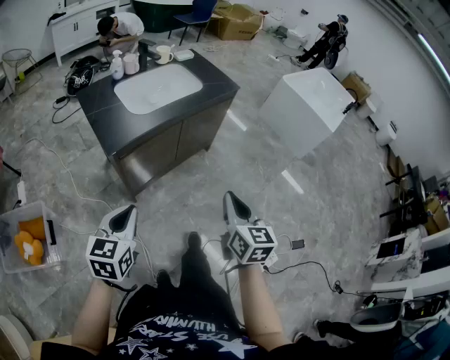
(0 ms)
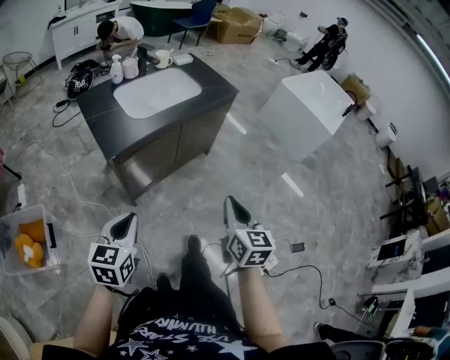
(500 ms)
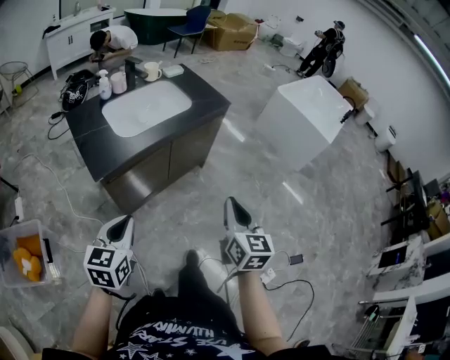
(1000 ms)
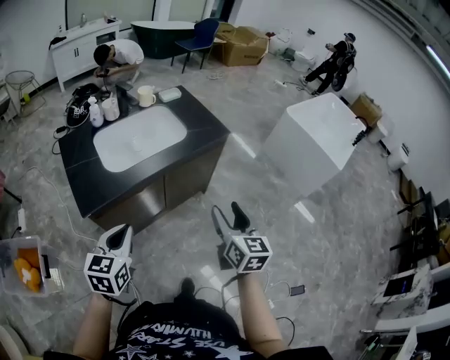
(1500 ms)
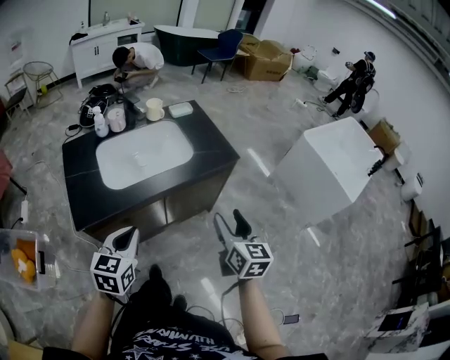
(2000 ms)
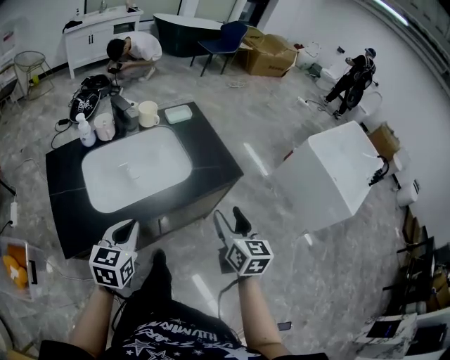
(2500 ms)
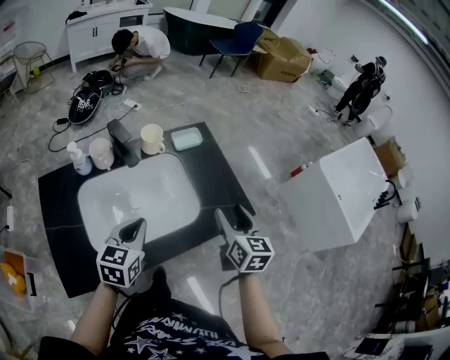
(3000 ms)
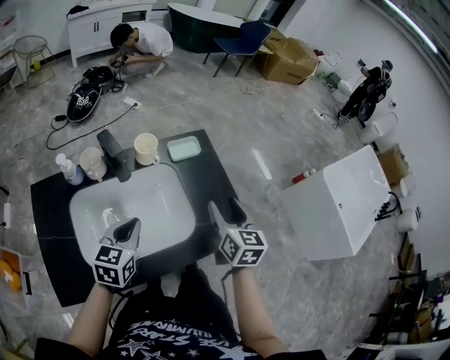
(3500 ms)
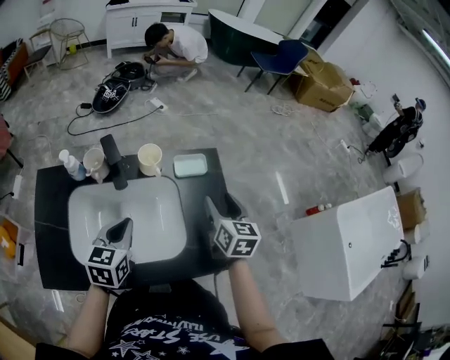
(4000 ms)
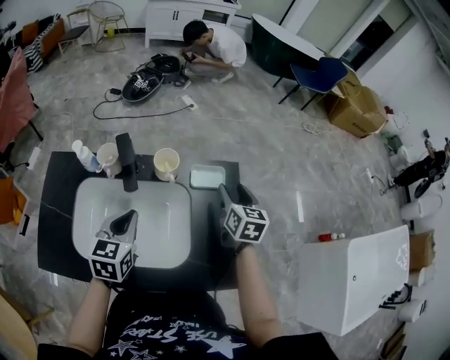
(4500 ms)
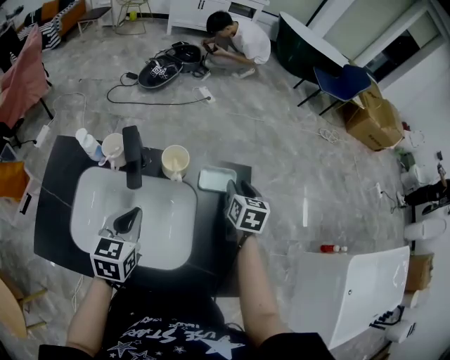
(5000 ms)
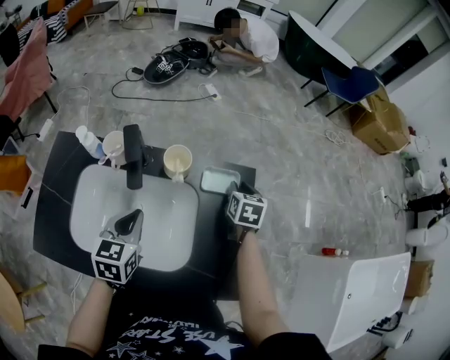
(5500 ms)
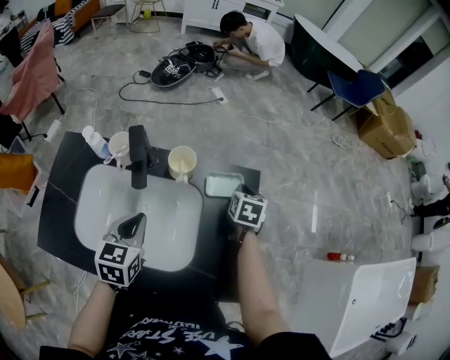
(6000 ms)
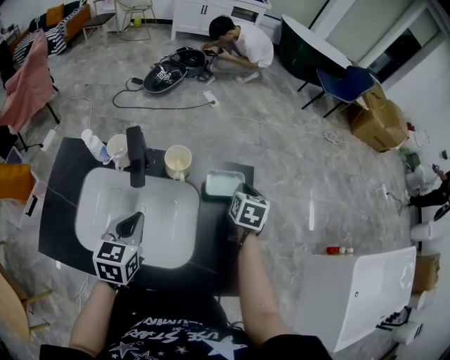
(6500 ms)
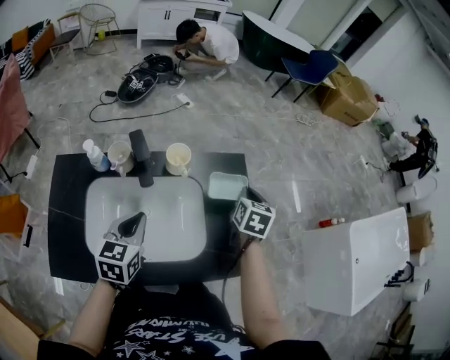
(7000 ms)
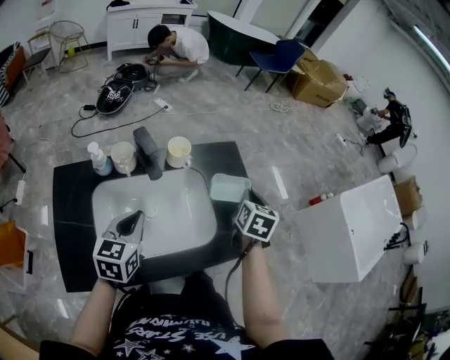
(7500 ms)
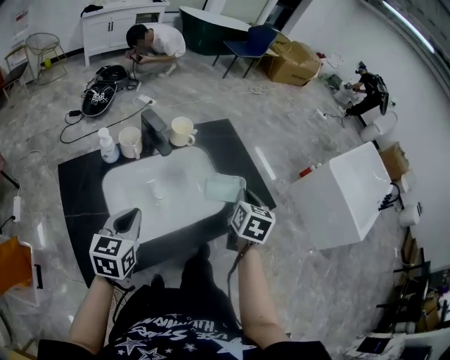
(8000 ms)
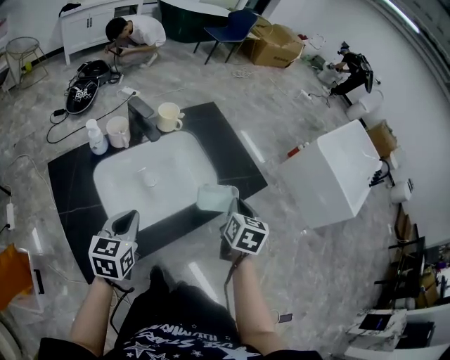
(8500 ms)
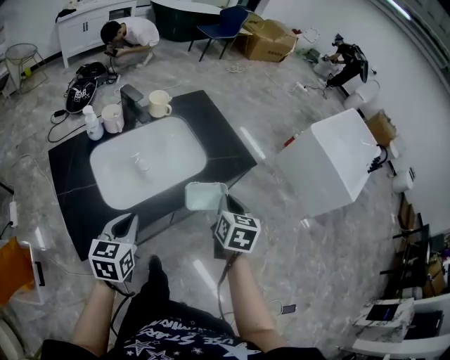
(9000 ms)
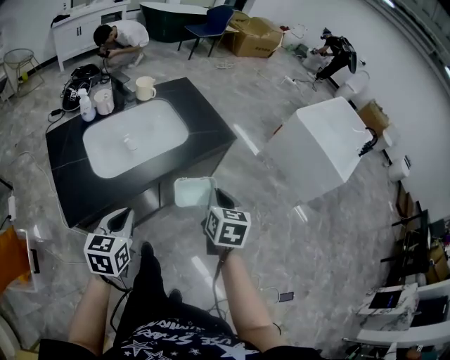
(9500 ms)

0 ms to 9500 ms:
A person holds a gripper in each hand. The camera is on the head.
0 ms to 2000 ms: The right gripper is displaced forward by roughly 35 cm, and opens up, while the left gripper moves forward and to the right, about 30 cm.
2000 ms to 4000 ms: The two grippers travel together, forward, some 50 cm. The left gripper changes its angle by approximately 20 degrees.
4000 ms to 5500 ms: The left gripper changes place by some 5 cm; the right gripper heads forward and downward, covering roughly 20 cm, rotates about 20 degrees, and closes its fingers.
5500 ms to 7500 ms: The right gripper ends up roughly 25 cm from where it was, rotates some 30 degrees, and closes. The left gripper moves about 10 cm, and rotates some 20 degrees.
7500 ms to 9500 ms: Both grippers move backward, about 35 cm.

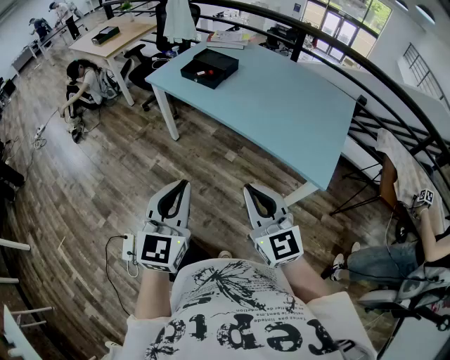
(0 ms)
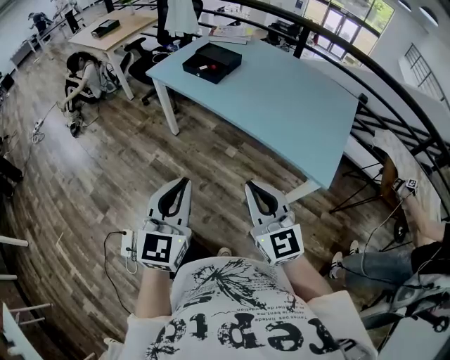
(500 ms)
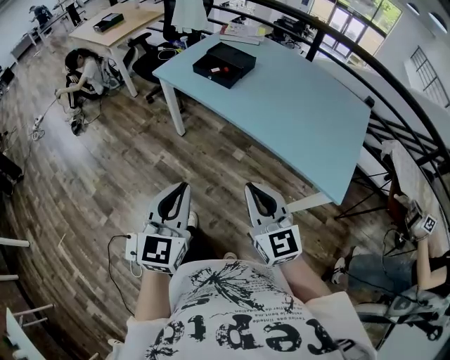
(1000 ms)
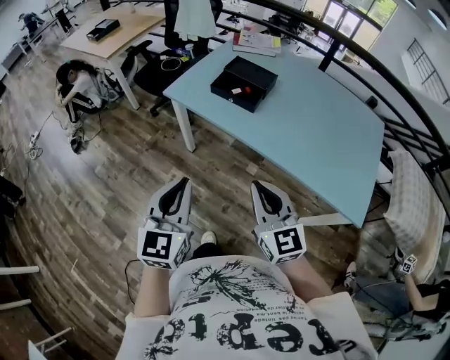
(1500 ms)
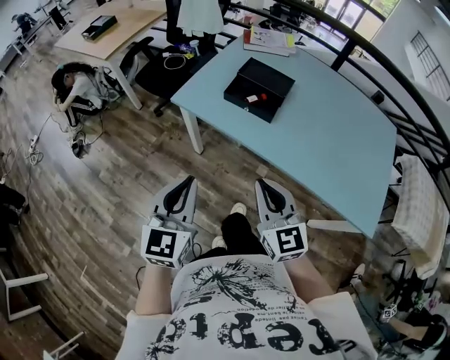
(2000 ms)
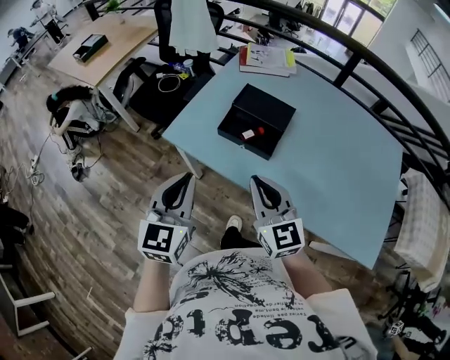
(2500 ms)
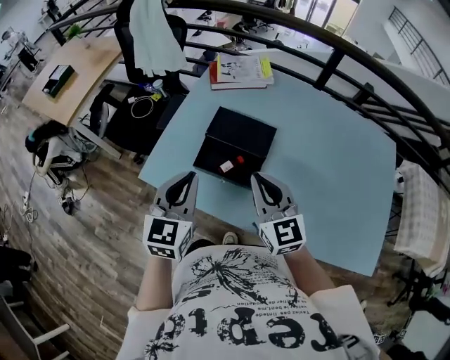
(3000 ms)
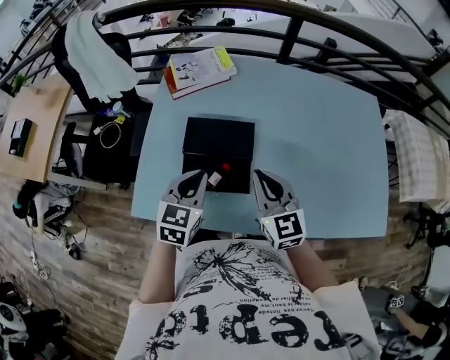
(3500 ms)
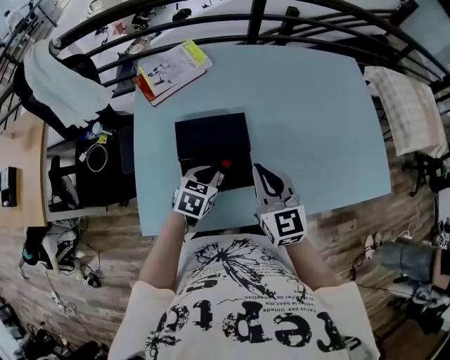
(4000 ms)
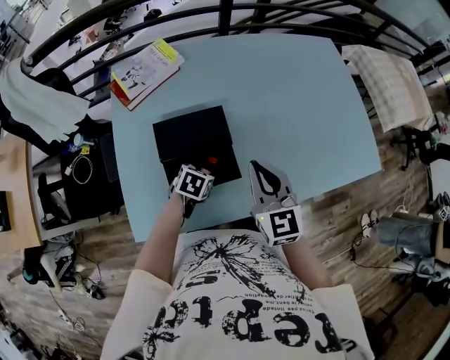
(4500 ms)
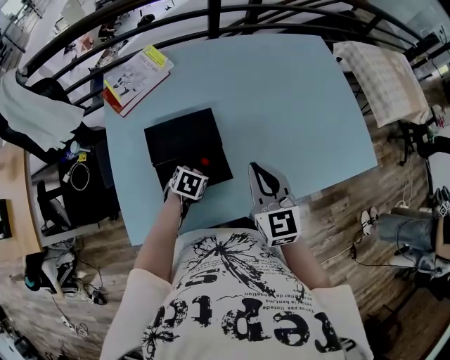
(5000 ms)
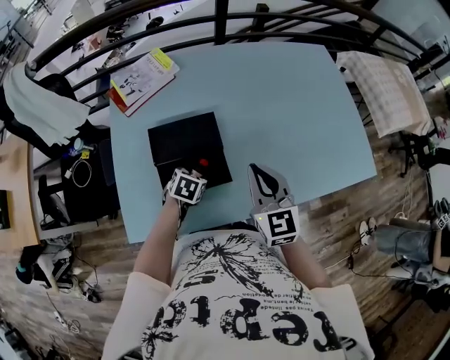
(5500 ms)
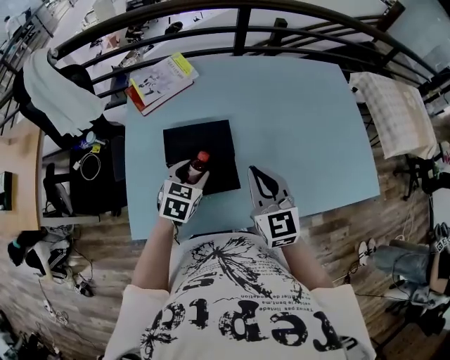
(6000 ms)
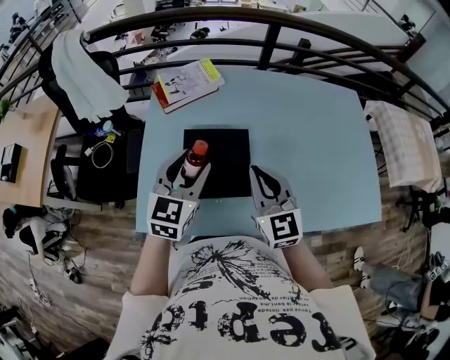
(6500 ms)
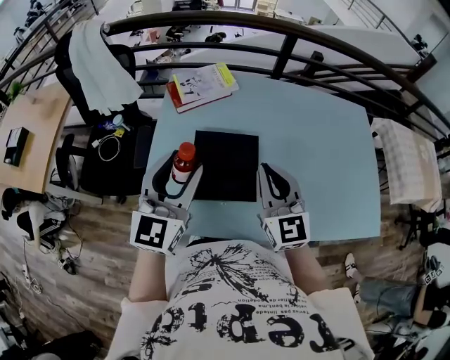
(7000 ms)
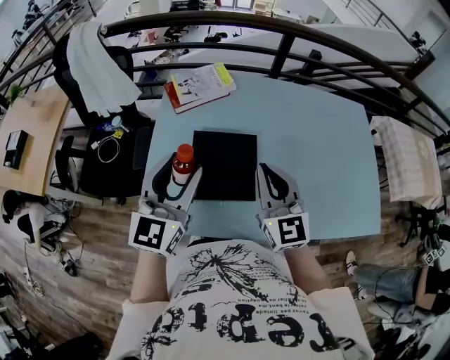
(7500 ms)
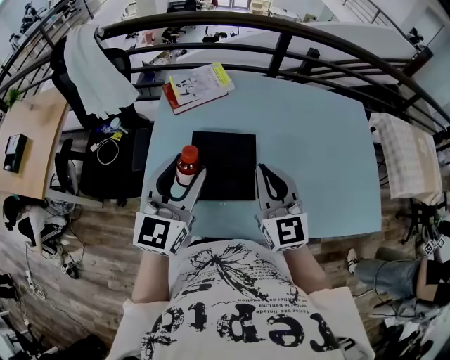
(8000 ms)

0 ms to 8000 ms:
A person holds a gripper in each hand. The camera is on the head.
0 ms to 2000 ms: Both grippers are carried forward and to the left, approximately 50 cm.
2000 ms to 4000 ms: Both grippers are carried roughly 50 cm. The left gripper tips its fingers downward by about 40 degrees, while the right gripper rotates approximately 40 degrees.
4000 ms to 6000 ms: The left gripper moves upward, some 5 cm, and opens up.
6000 ms to 8000 ms: The left gripper moves upward, approximately 20 cm, and angles its fingers upward, by some 40 degrees; the right gripper shifts approximately 10 cm upward and to the left.

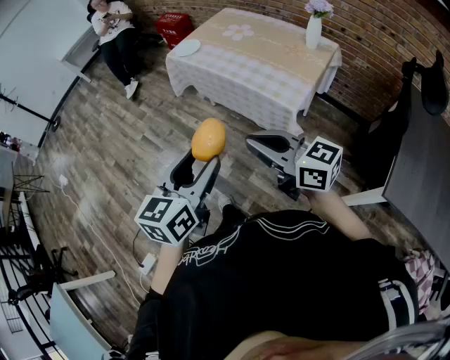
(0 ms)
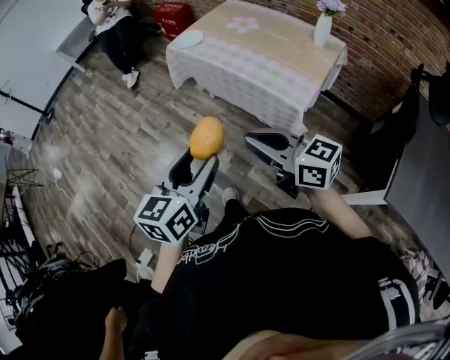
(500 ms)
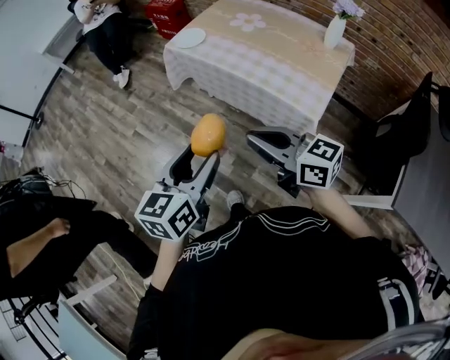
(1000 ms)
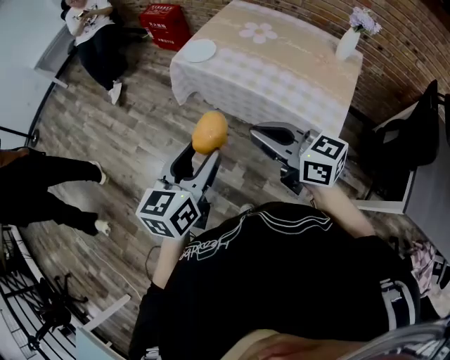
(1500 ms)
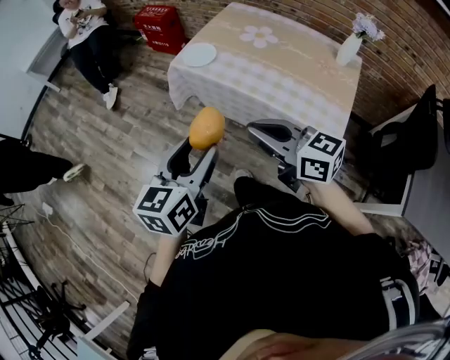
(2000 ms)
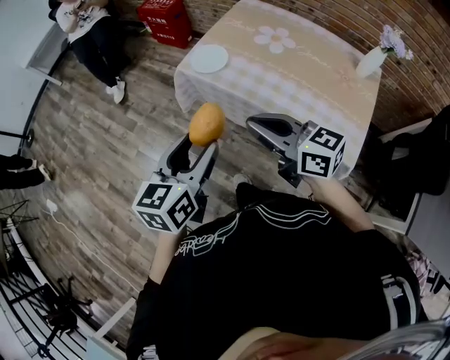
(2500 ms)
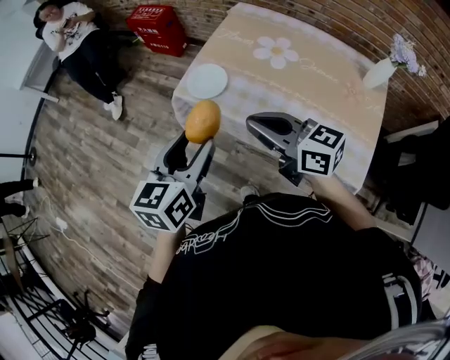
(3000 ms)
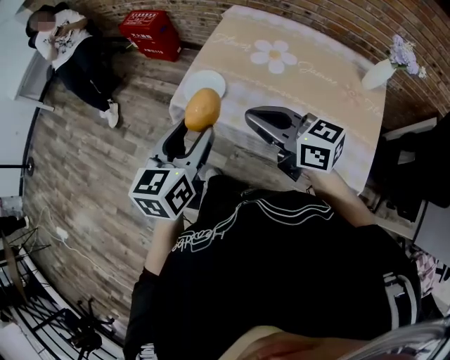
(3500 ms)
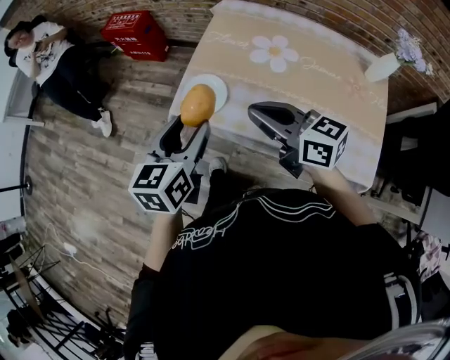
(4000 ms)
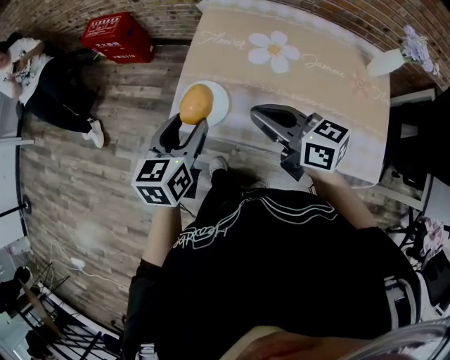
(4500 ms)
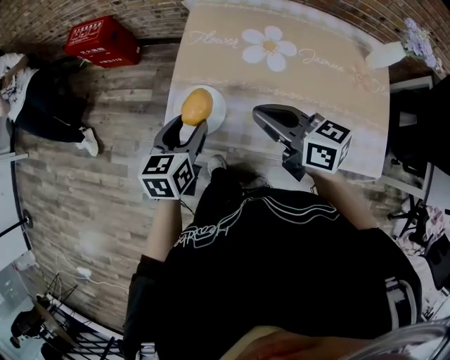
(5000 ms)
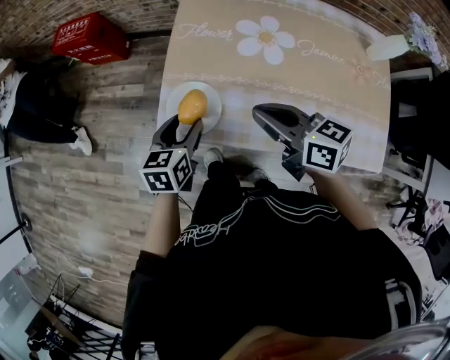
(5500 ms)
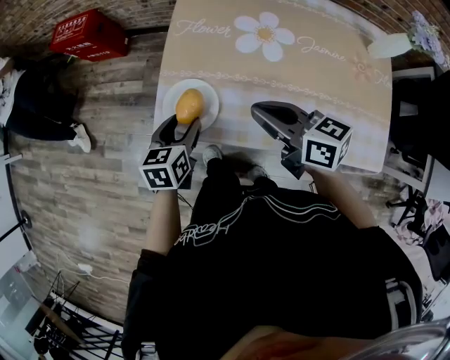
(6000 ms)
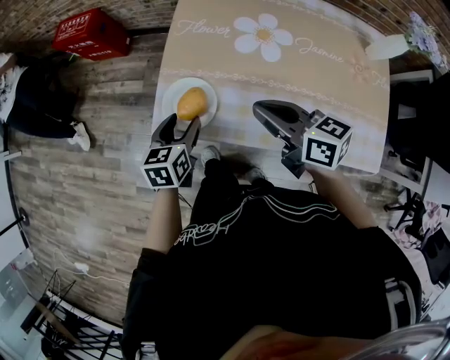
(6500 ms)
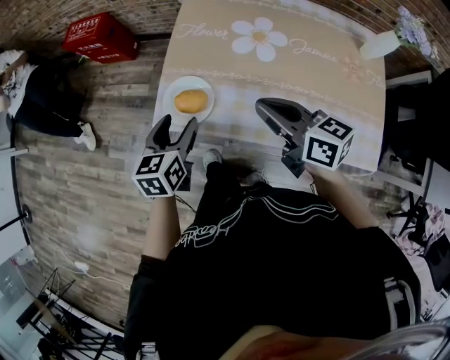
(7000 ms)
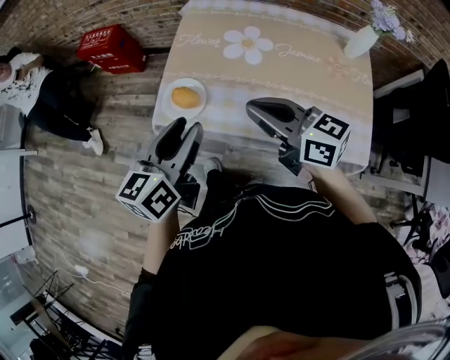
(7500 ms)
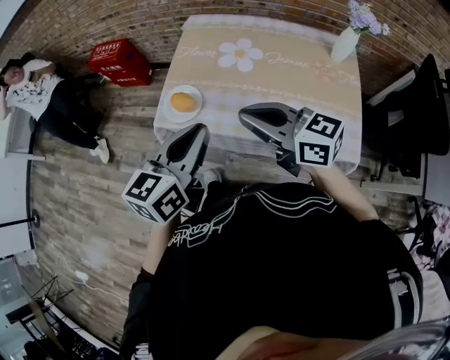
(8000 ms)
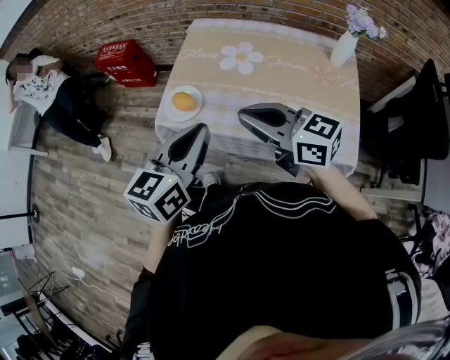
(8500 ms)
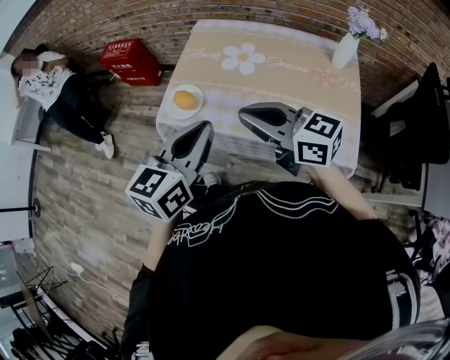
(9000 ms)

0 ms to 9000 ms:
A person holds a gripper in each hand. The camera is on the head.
0 ms to 2000 ms: Both grippers move forward and to the left, about 35 cm.
2000 ms to 4500 ms: The grippers both shift forward by approximately 40 cm. The right gripper changes its angle by some 20 degrees.
4500 ms to 7000 ms: The left gripper travels downward by about 10 cm, while the right gripper is displaced to the right by approximately 5 cm.
7000 ms to 9000 ms: The left gripper goes about 30 cm upward, backward and to the right, changes its angle by roughly 20 degrees, and closes up. The right gripper is displaced backward and upward by some 20 cm, and swivels roughly 30 degrees.
